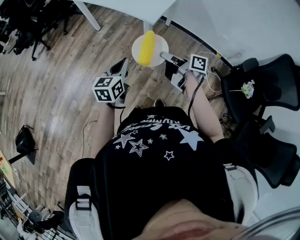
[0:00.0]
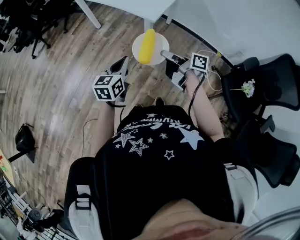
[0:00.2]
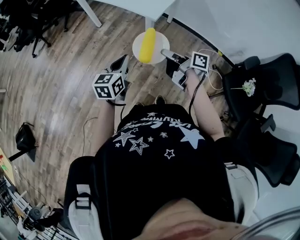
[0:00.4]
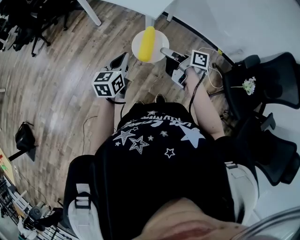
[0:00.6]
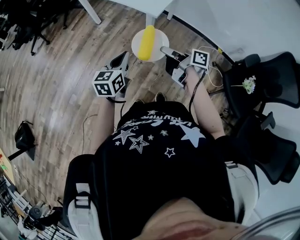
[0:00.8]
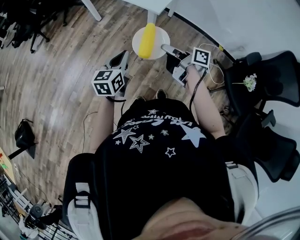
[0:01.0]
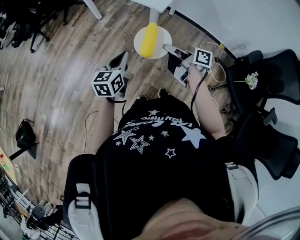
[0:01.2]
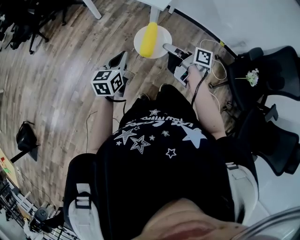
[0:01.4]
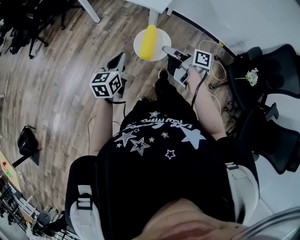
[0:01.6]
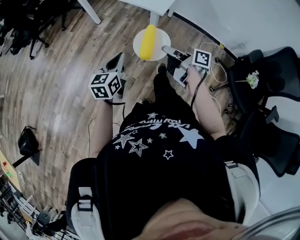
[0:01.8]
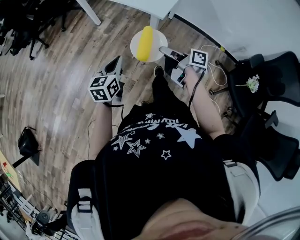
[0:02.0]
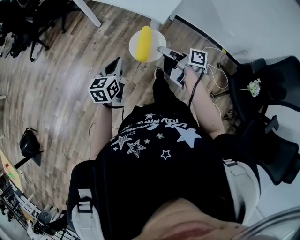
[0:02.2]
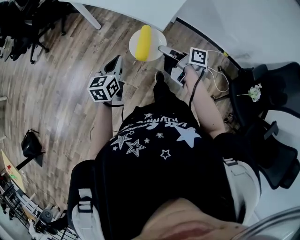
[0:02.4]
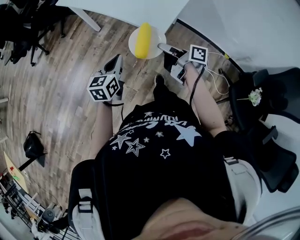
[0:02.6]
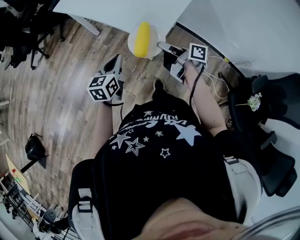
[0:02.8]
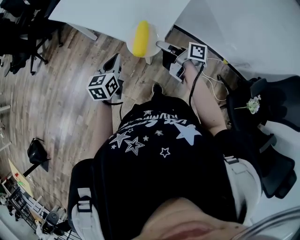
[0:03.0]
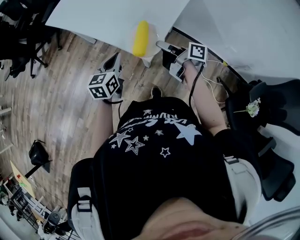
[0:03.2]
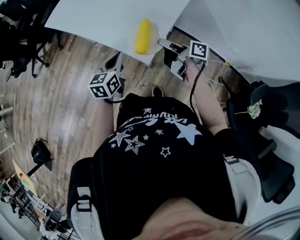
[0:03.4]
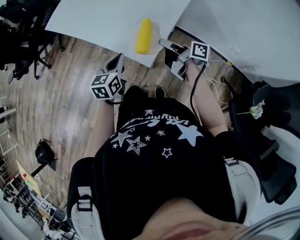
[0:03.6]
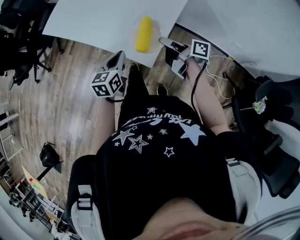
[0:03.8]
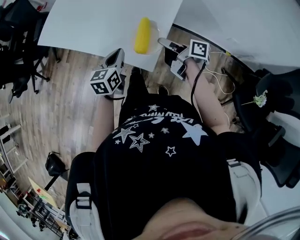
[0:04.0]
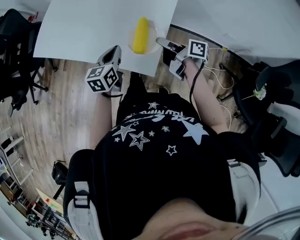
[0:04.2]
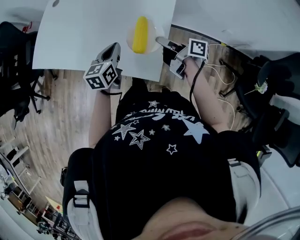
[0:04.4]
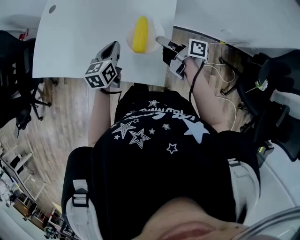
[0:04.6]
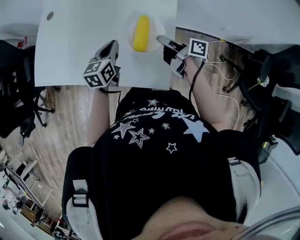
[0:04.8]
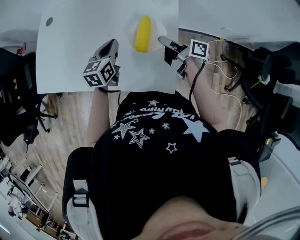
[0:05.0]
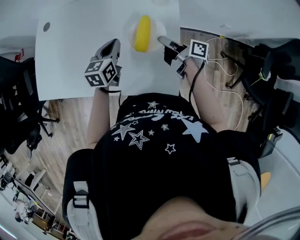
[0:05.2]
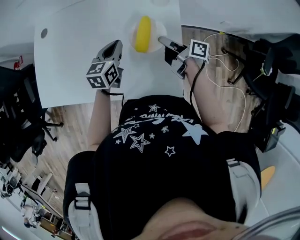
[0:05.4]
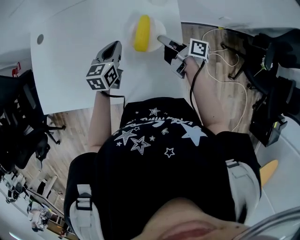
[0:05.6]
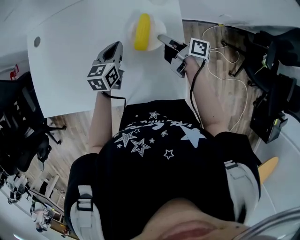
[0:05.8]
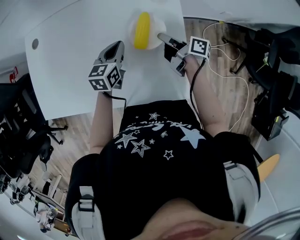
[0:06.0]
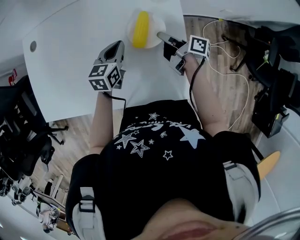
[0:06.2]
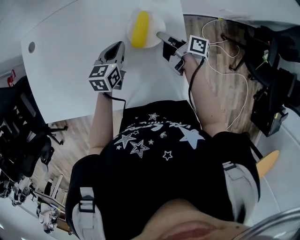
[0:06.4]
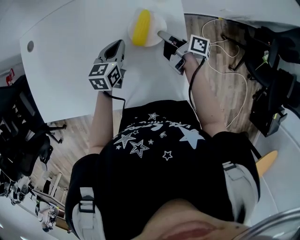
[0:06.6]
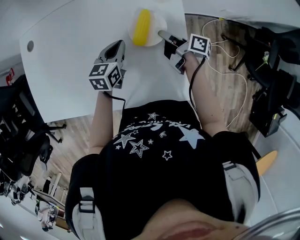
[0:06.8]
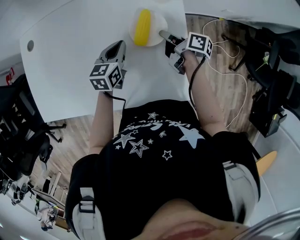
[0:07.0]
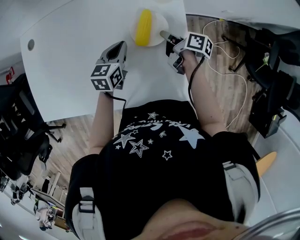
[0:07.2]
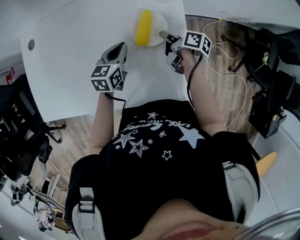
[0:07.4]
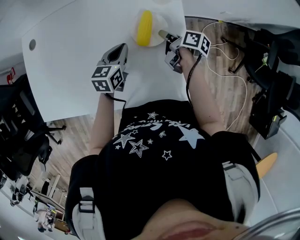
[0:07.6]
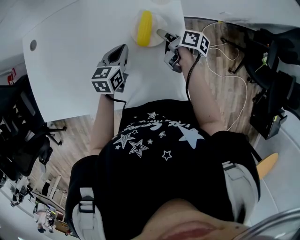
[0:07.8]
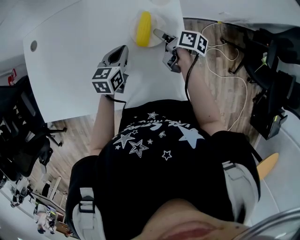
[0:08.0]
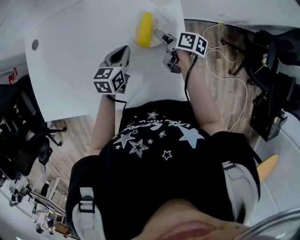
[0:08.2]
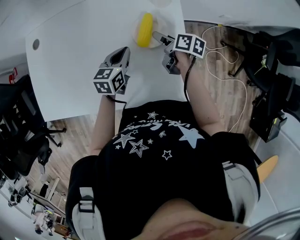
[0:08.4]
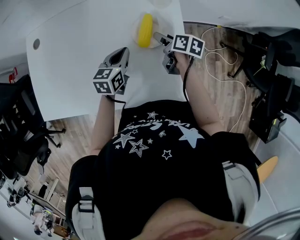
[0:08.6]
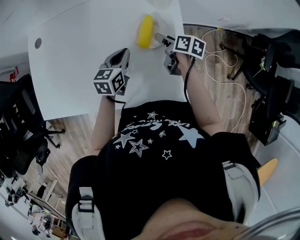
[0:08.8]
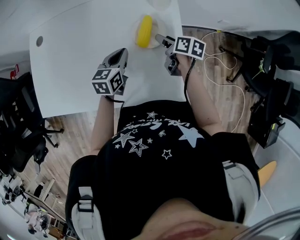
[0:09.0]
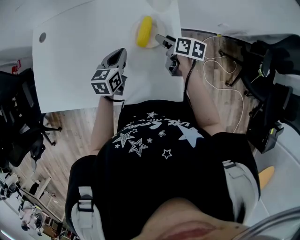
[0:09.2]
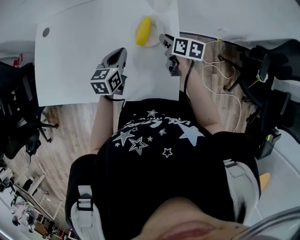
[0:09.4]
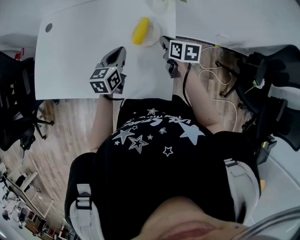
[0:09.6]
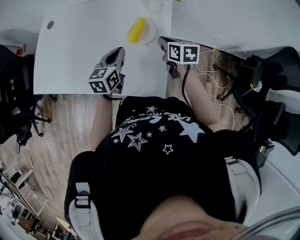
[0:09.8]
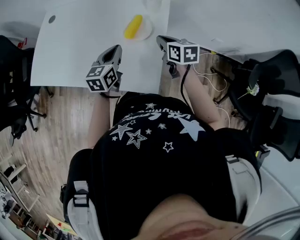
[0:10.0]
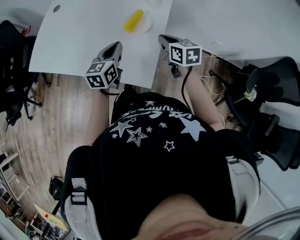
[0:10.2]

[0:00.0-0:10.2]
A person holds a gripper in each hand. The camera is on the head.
0:00.0 to 0:01.4: The two grippers go about 5 cm to the left.
0:01.4 to 0:03.0: The grippers both shift forward and to the right by approximately 35 cm.
0:03.0 to 0:04.4: The left gripper moves forward, roughly 25 cm. The right gripper shifts roughly 20 cm forward and to the right.
0:04.4 to 0:05.8: The left gripper travels forward by approximately 20 cm, and changes its angle by about 20 degrees, while the right gripper moves forward and downward, approximately 15 cm, and swivels about 20 degrees.
0:05.8 to 0:07.2: The right gripper changes place by about 5 cm.
0:07.2 to 0:08.8: The right gripper opens its fingers.
0:08.8 to 0:10.2: The right gripper heads upward, backward and to the right, covering about 20 cm, rotates around the line of its fingers by roughly 50 degrees, counterclockwise from behind, and closes up. Meanwhile the left gripper is displaced backward, upward and to the right by roughly 20 cm, and rotates approximately 30 degrees.

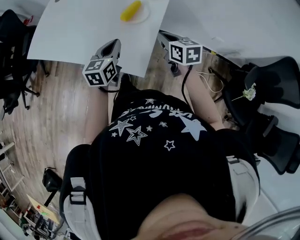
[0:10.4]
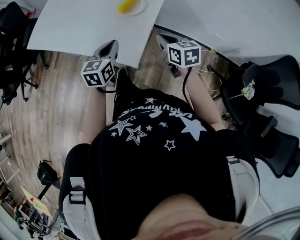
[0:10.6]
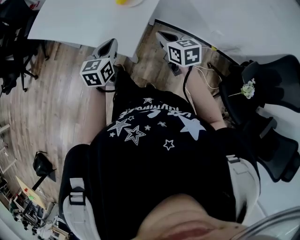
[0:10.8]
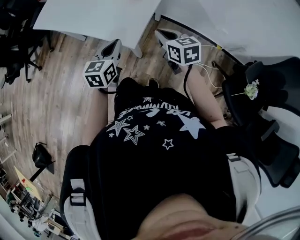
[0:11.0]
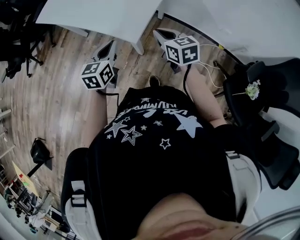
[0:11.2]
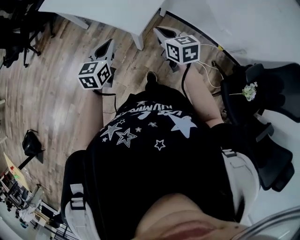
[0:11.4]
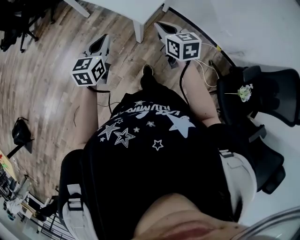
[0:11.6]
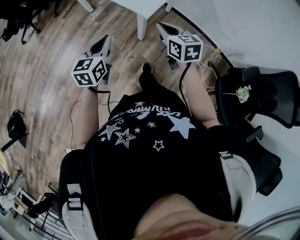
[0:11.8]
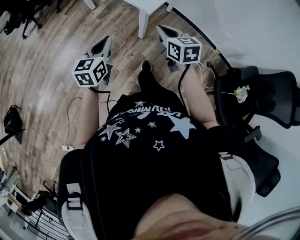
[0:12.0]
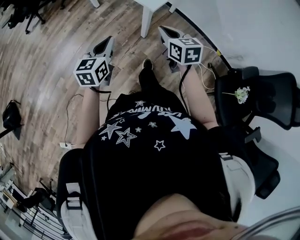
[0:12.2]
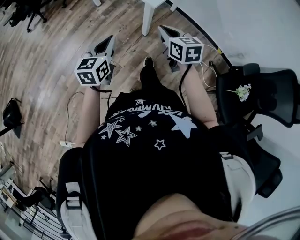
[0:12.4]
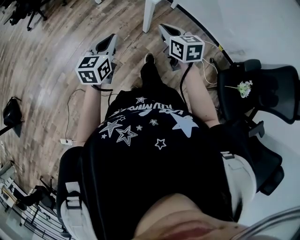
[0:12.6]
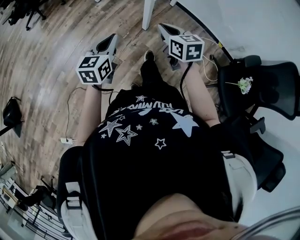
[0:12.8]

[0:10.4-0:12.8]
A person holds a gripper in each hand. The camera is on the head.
0:10.4 to 0:11.6: The two grippers go about 25 cm backward.
0:11.6 to 0:12.8: The left gripper goes some 20 cm backward. The right gripper heads backward and to the left, covering approximately 20 cm.

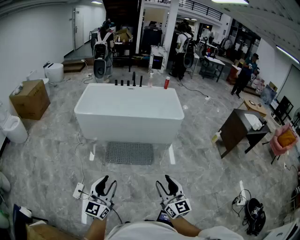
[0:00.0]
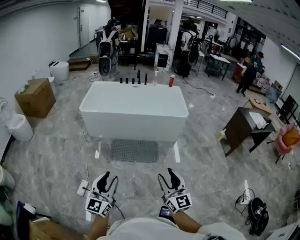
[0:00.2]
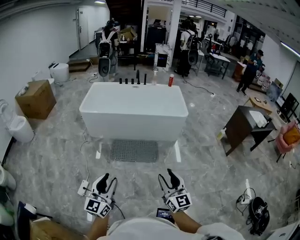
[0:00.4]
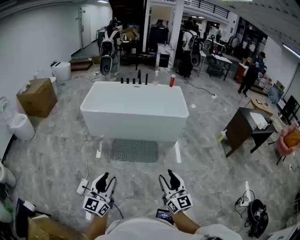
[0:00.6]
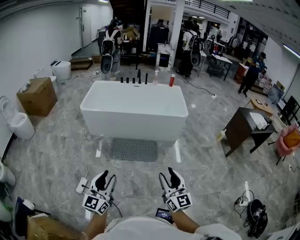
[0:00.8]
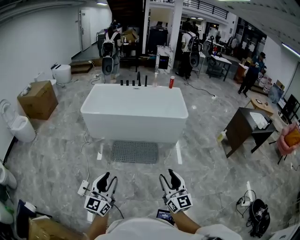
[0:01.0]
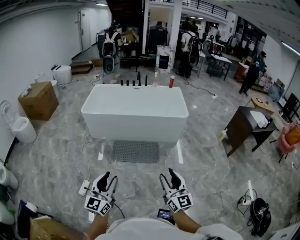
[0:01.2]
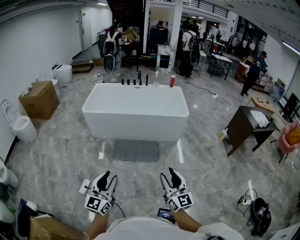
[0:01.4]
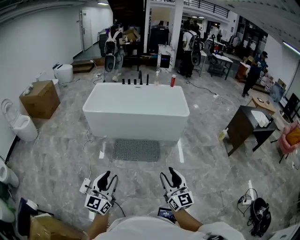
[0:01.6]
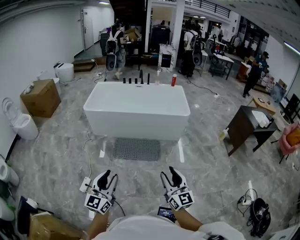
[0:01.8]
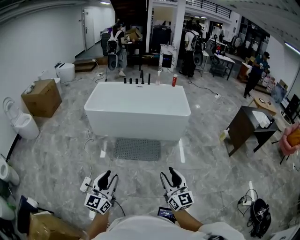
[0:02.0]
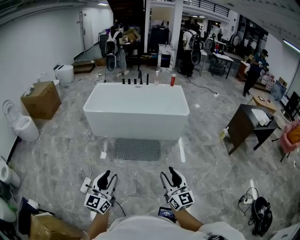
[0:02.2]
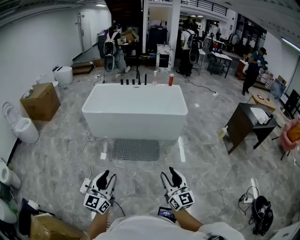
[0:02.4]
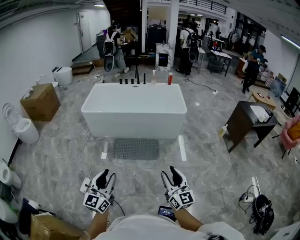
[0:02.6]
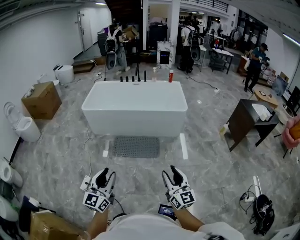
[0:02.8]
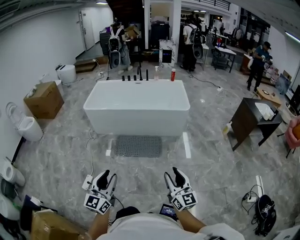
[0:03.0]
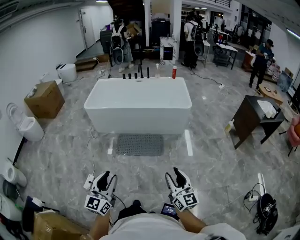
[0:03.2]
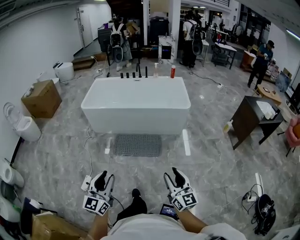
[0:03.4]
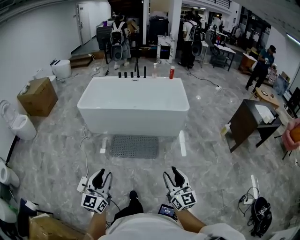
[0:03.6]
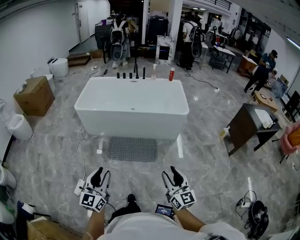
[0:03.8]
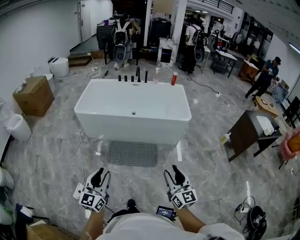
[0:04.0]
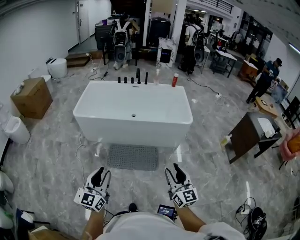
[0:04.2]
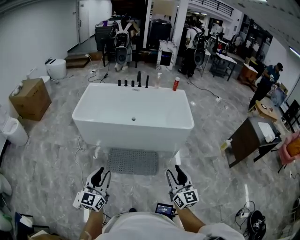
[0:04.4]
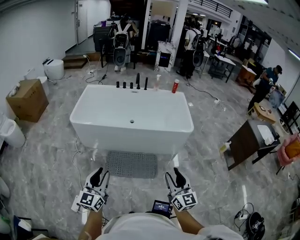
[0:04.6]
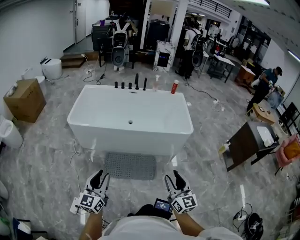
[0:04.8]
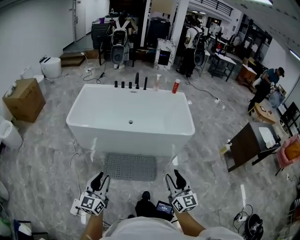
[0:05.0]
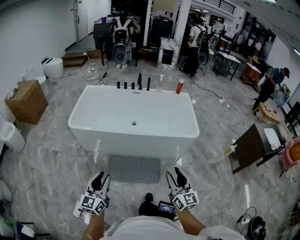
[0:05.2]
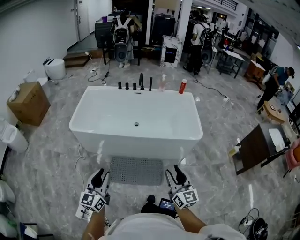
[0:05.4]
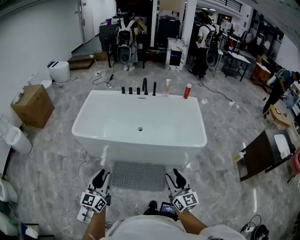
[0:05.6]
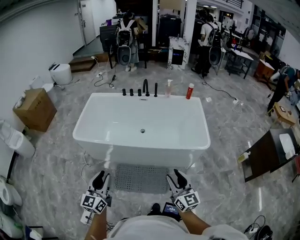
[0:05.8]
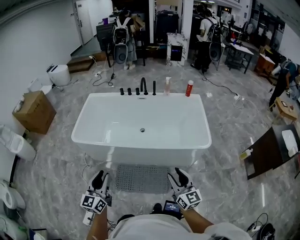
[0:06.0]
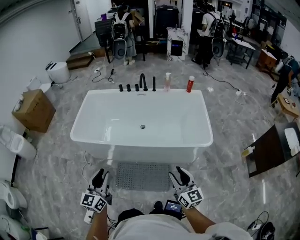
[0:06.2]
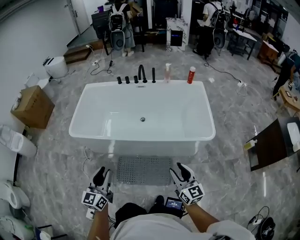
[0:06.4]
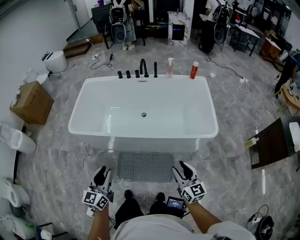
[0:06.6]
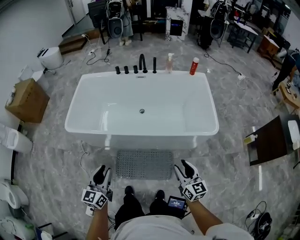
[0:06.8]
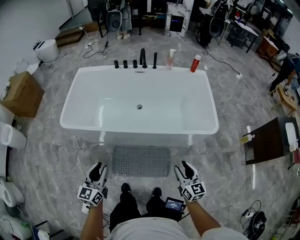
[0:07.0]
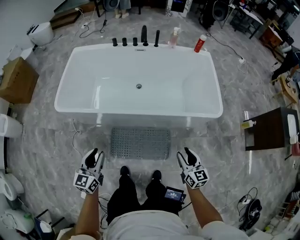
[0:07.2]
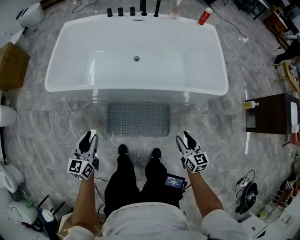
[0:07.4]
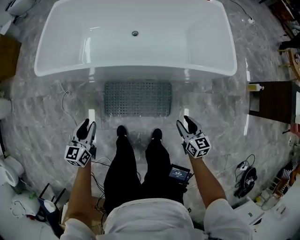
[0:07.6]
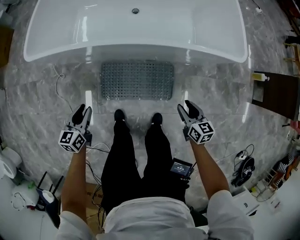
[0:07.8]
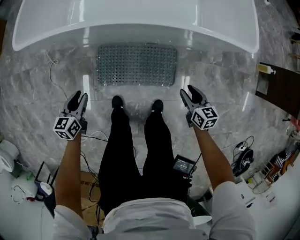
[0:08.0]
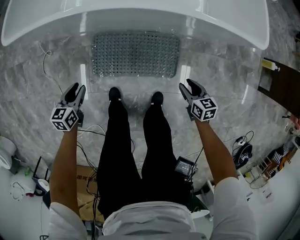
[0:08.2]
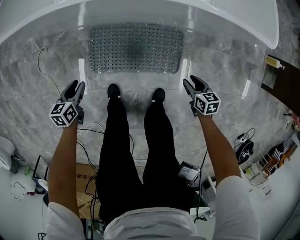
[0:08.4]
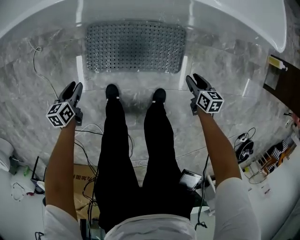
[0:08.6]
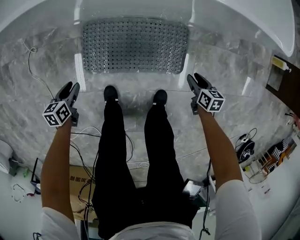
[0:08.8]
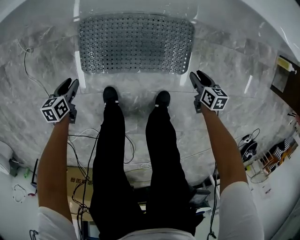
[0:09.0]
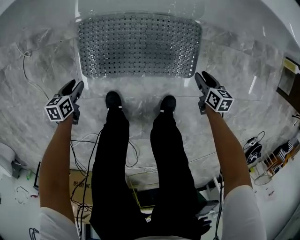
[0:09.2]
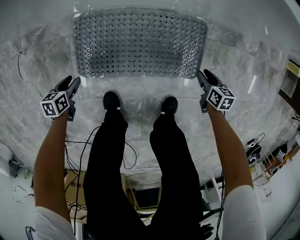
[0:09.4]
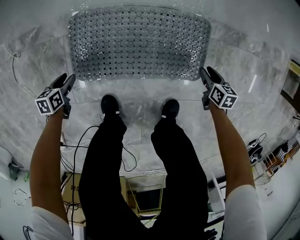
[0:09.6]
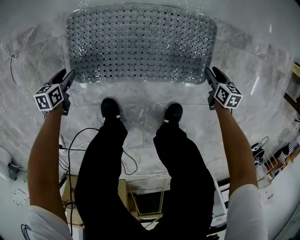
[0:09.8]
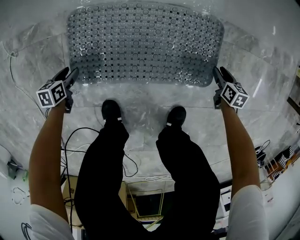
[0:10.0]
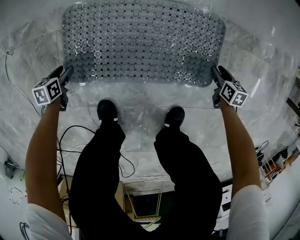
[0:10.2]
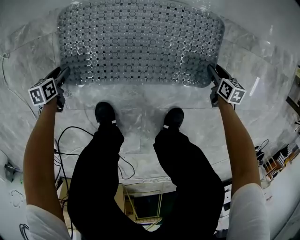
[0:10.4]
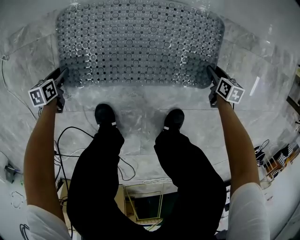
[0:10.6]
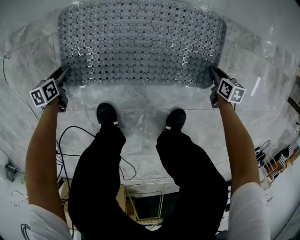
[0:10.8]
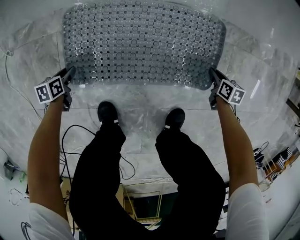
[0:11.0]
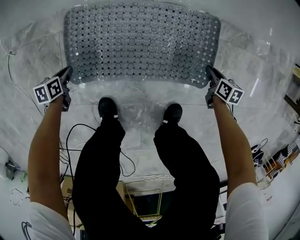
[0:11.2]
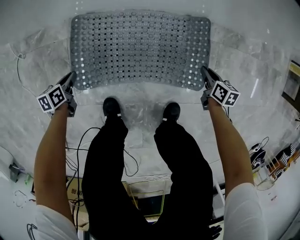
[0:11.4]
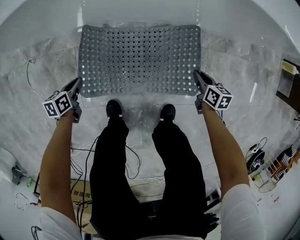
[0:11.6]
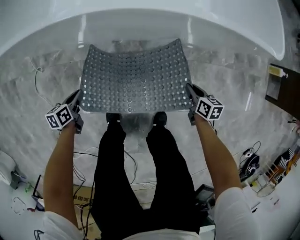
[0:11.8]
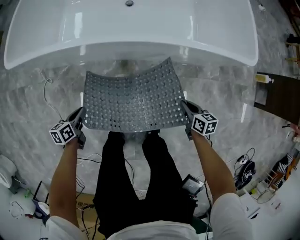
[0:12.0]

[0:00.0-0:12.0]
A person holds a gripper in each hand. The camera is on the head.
0:00.0 to 0:01.6: The grippers make only small movements.
0:01.6 to 0:03.0: The grippers both shift to the right by some 10 cm.
0:03.0 to 0:04.4: The grippers both shift forward by roughly 30 cm.
0:04.4 to 0:06.0: Both grippers travel together forward, about 30 cm.
0:06.0 to 0:07.6: The right gripper shifts roughly 30 cm downward, and angles its fingers downward, by about 30 degrees. The left gripper shifts roughly 35 cm downward, to the left and forward, and changes its angle by approximately 30 degrees.
0:07.6 to 0:09.0: The two grippers go some 50 cm downward. The left gripper tips its fingers downward by about 30 degrees, while the right gripper turns by some 30 degrees.
0:09.0 to 0:10.4: The grippers both shift downward by roughly 25 cm.
0:10.4 to 0:12.0: Both grippers travel together upward, roughly 50 cm. The left gripper changes its angle by some 30 degrees, and closes up; the right gripper closes up.
